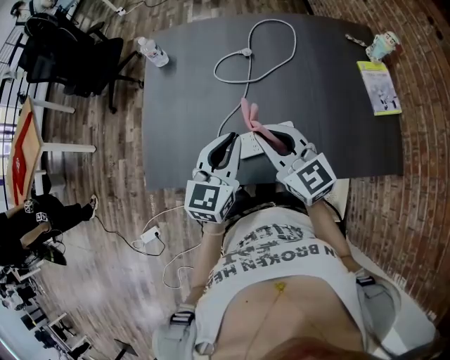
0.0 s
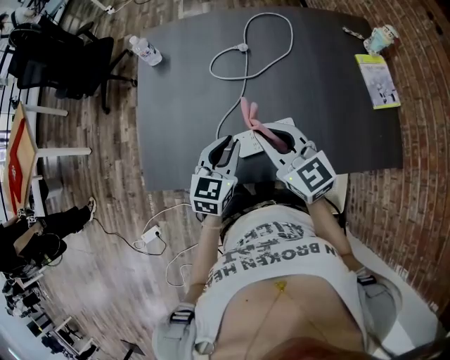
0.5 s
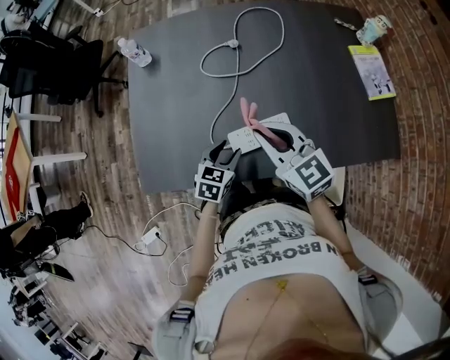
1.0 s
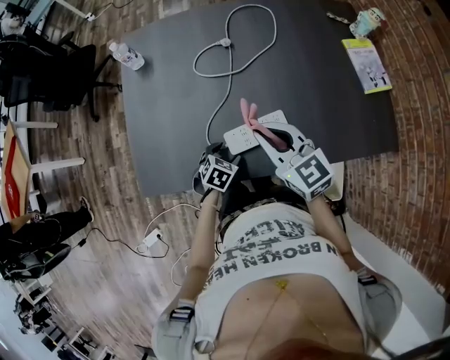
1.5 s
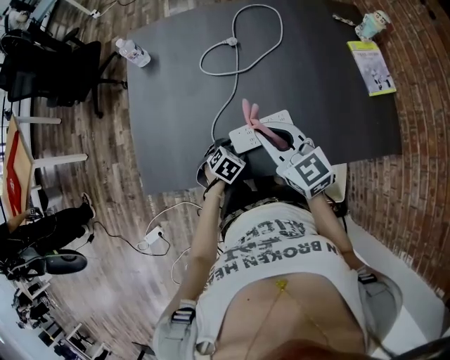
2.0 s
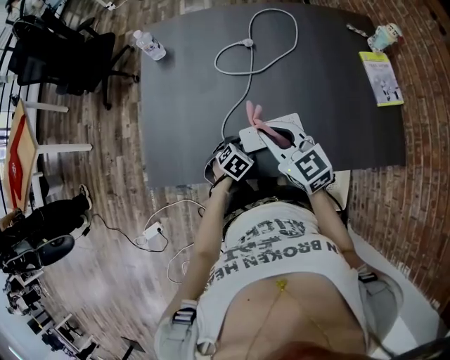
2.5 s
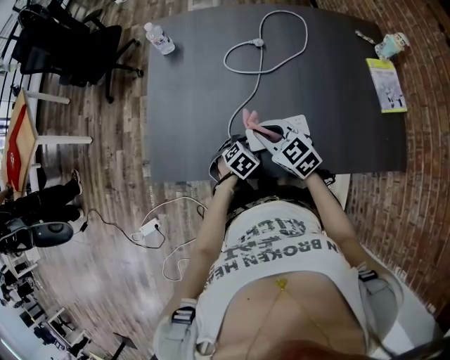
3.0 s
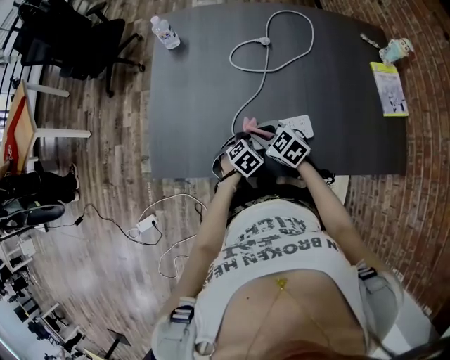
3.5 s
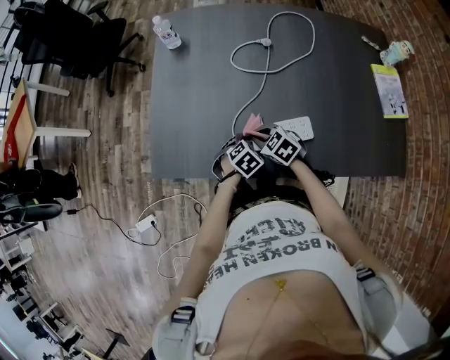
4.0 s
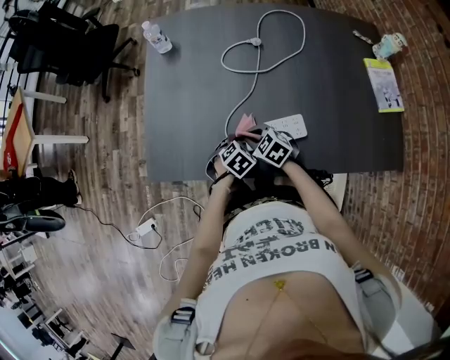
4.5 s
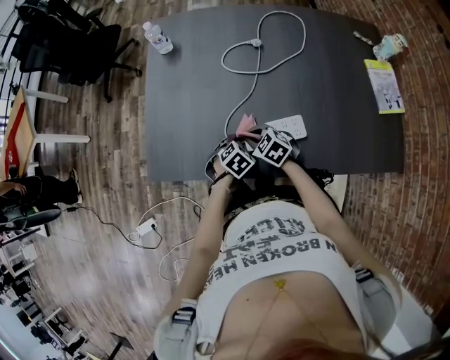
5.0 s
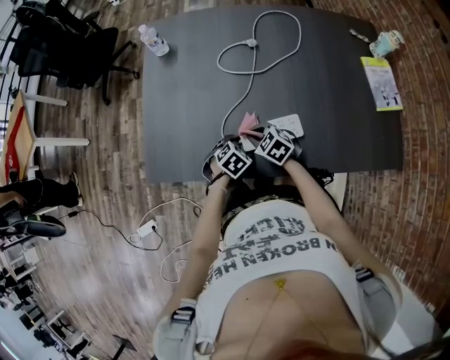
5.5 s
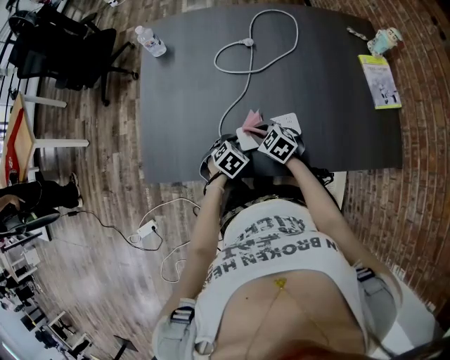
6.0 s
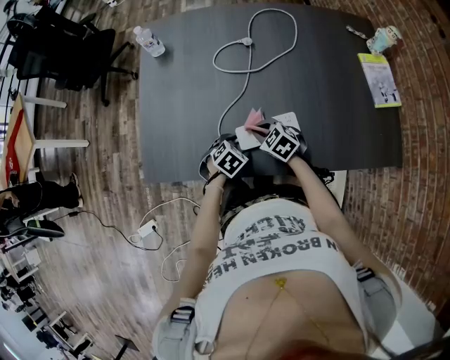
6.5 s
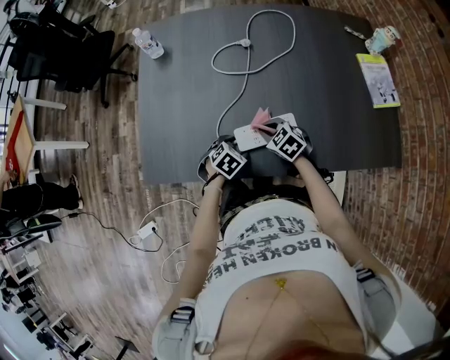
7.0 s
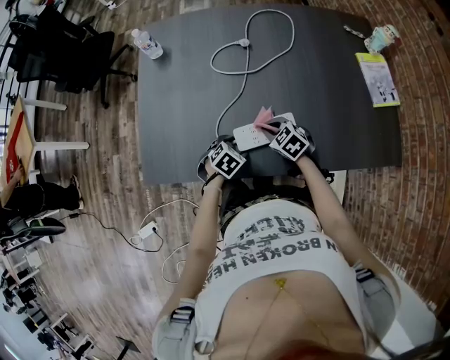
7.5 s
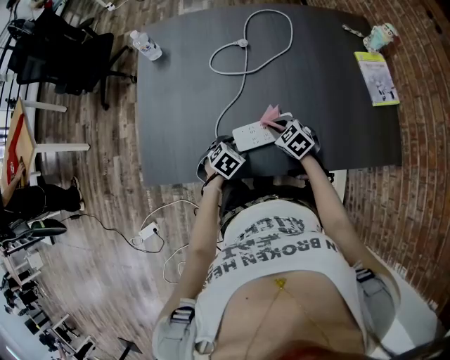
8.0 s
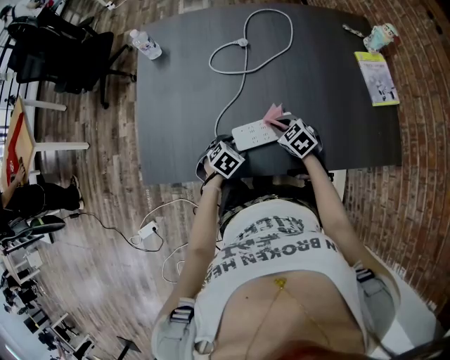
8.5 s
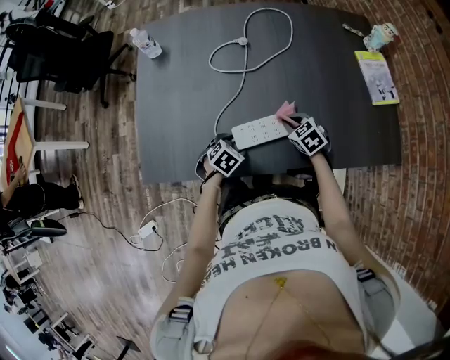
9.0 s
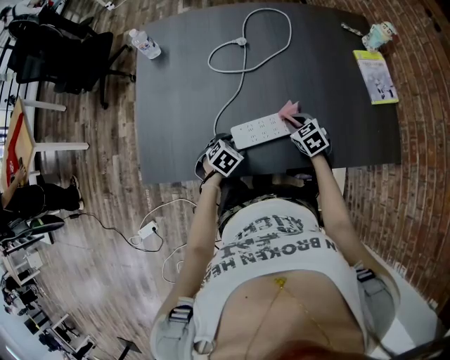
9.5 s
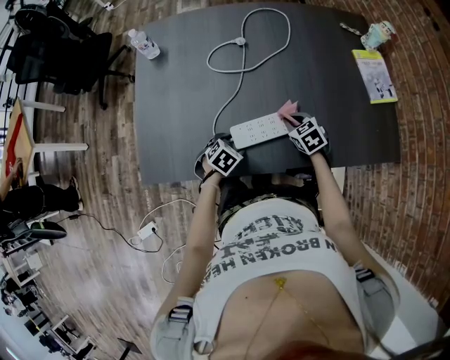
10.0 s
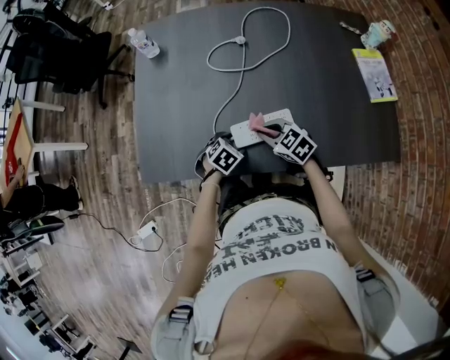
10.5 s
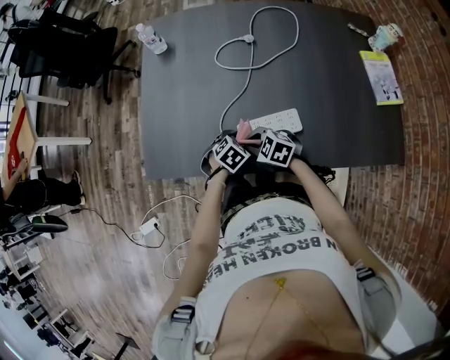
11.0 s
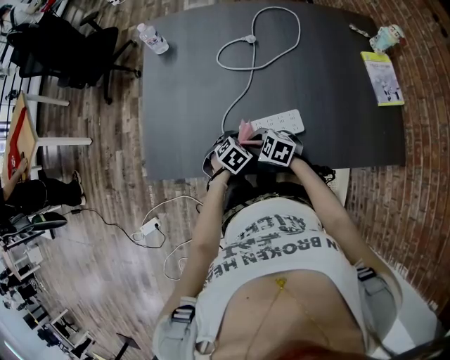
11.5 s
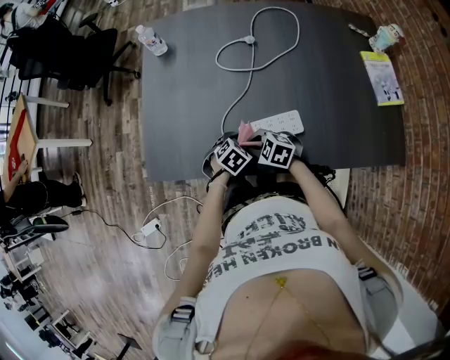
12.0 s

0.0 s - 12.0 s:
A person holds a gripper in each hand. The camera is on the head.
0.0 s - 2.0 s: The right gripper travels downward by roughly 5 cm. Meanwhile the left gripper heads downward, covering approximately 30 cm, tips its fingers downward by roughly 50 degrees, and opens.
2.0 s - 4.0 s: The right gripper shifts roughly 20 cm downward, and tips its fingers downward by roughly 30 degrees.
4.0 s - 6.0 s: The grippers move only a little.
6.0 s - 8.0 s: The right gripper shifts approximately 10 cm to the right.
8.0 s - 10.0 s: The right gripper is displaced to the right by approximately 5 cm.
10.0 s - 12.0 s: The right gripper ends up roughly 20 cm from where it was, and turns by about 40 degrees.

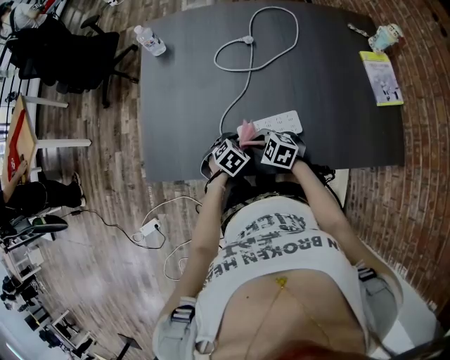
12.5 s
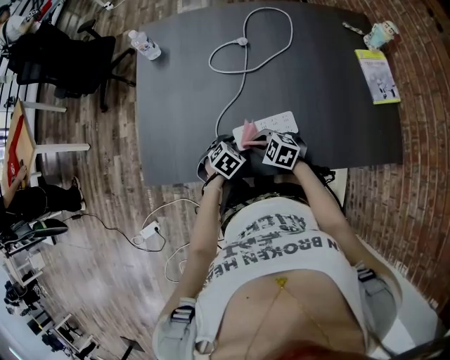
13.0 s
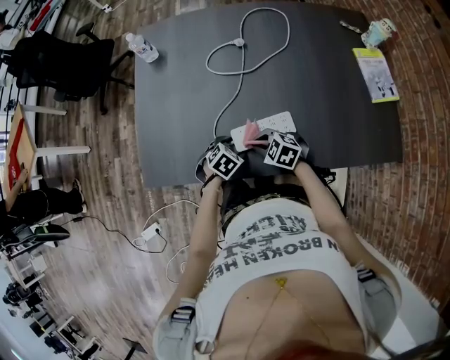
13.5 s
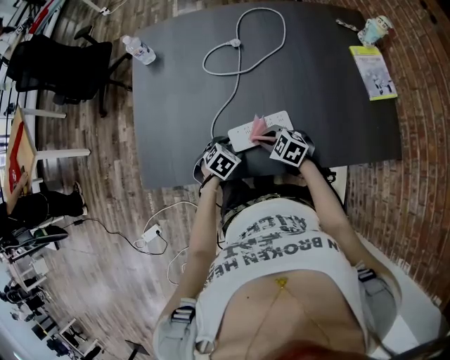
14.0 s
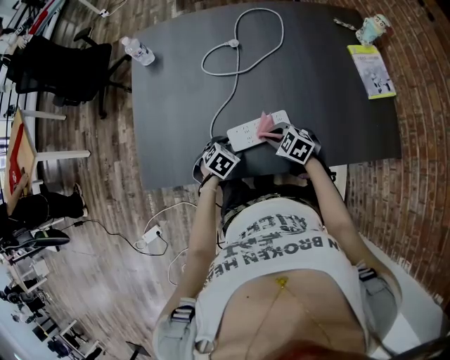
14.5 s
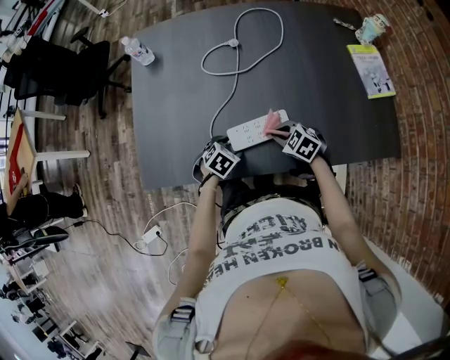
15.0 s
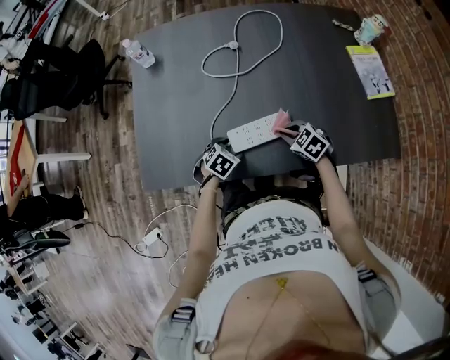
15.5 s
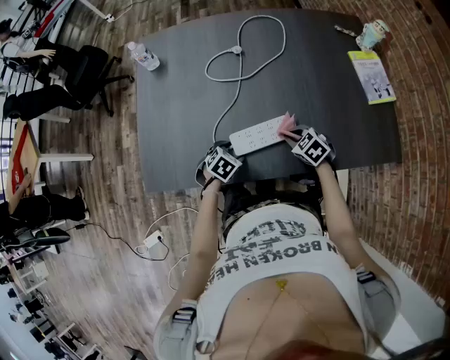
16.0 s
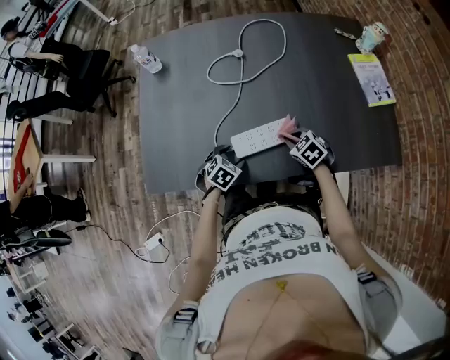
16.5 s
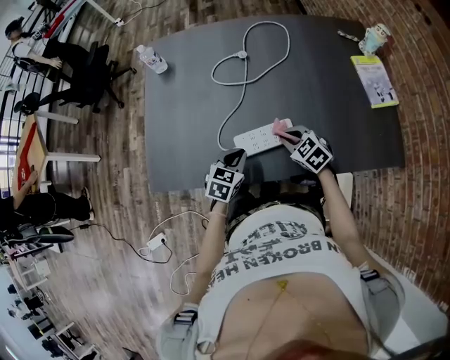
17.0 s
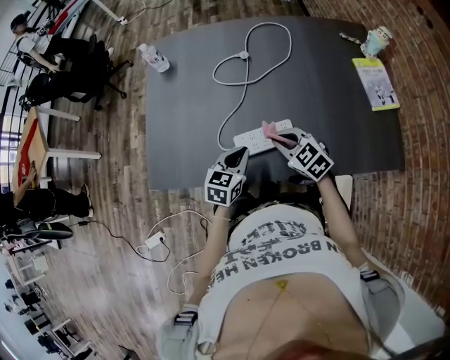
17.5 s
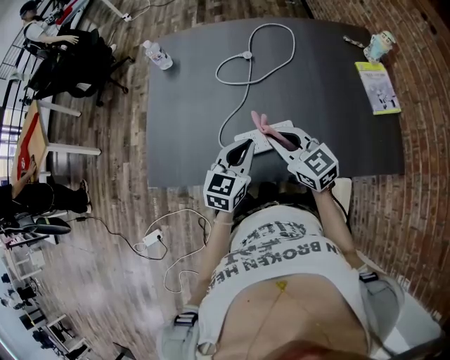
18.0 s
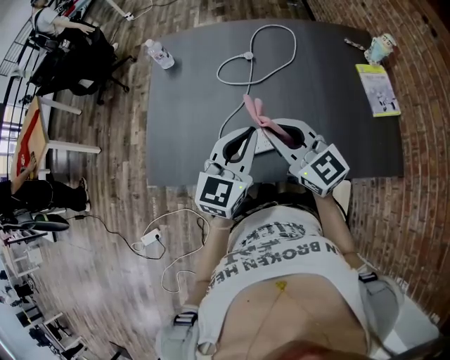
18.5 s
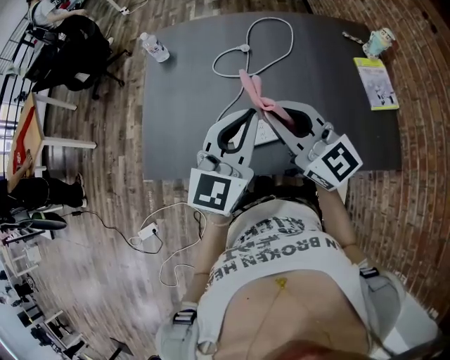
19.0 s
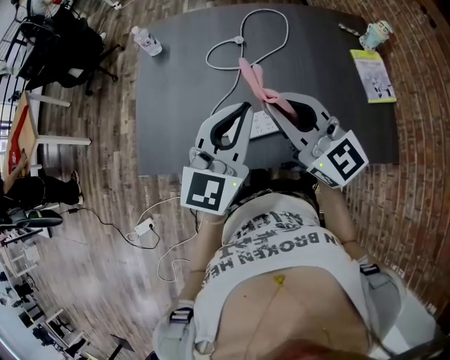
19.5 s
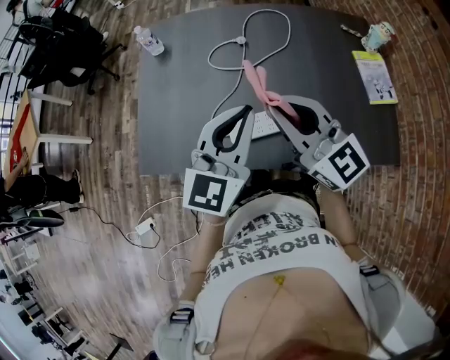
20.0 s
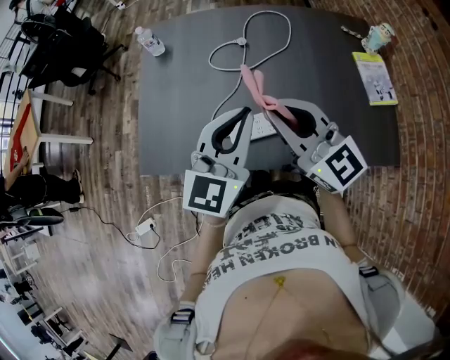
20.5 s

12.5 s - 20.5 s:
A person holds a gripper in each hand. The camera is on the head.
12.5 s - 14.5 s: The right gripper moves about 10 cm.
14.5 s - 16.5 s: The right gripper shifts by about 5 cm.
16.5 s - 18.5 s: Both grippers travel together upward, roughly 30 cm. The left gripper tips its fingers upward by some 50 degrees, and closes up. The right gripper points its fingers approximately 50 degrees further upward.
18.5 s - 20.5 s: Both grippers travel together upward, approximately 5 cm.

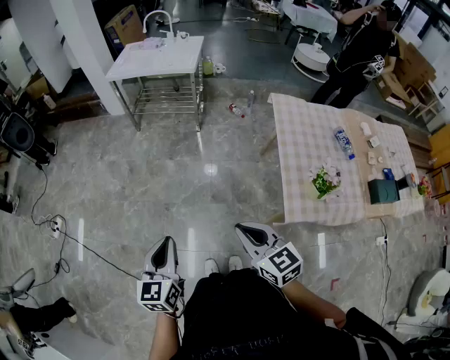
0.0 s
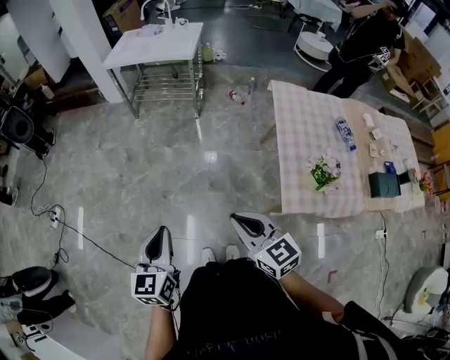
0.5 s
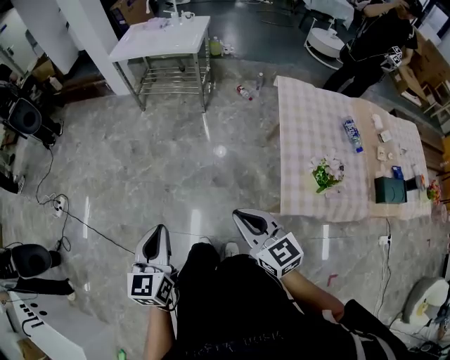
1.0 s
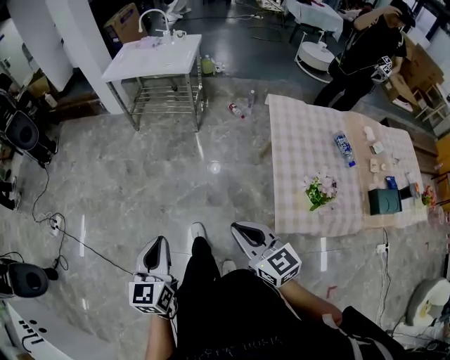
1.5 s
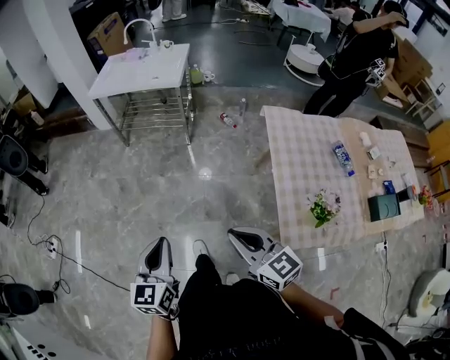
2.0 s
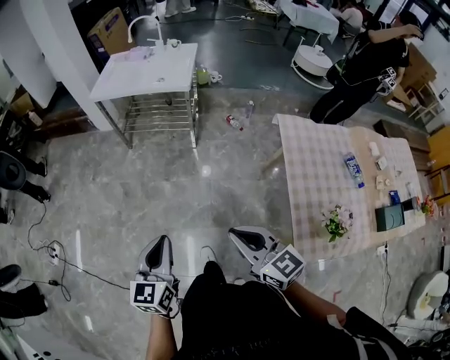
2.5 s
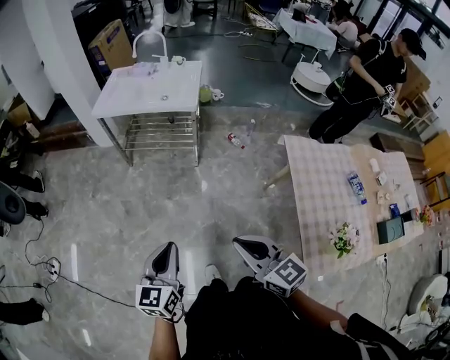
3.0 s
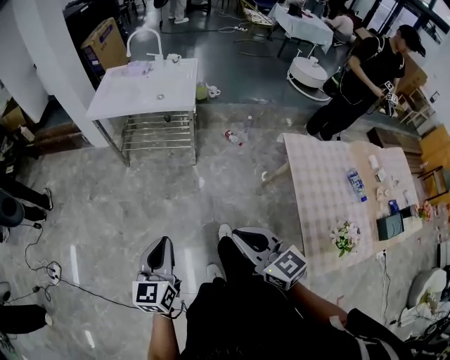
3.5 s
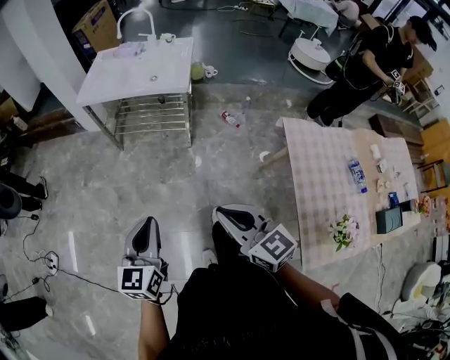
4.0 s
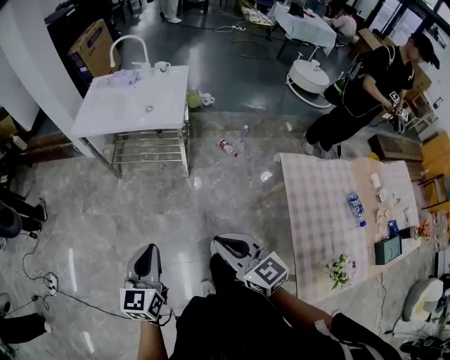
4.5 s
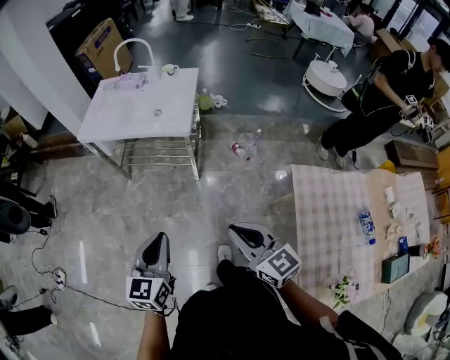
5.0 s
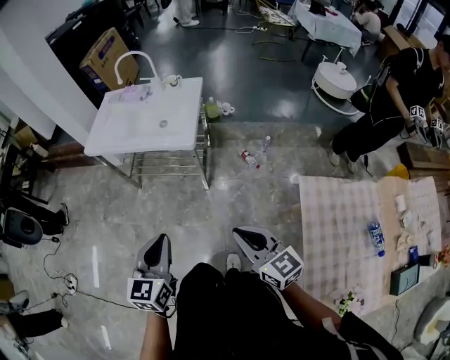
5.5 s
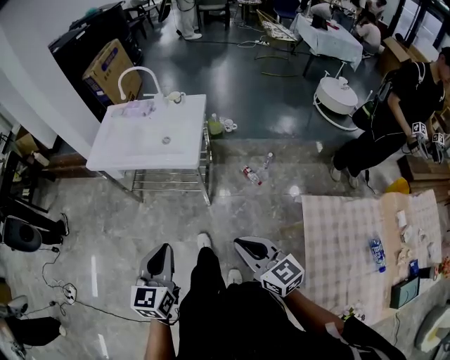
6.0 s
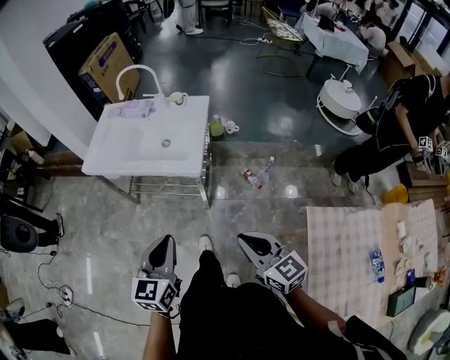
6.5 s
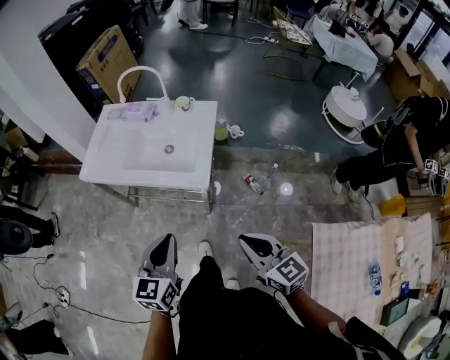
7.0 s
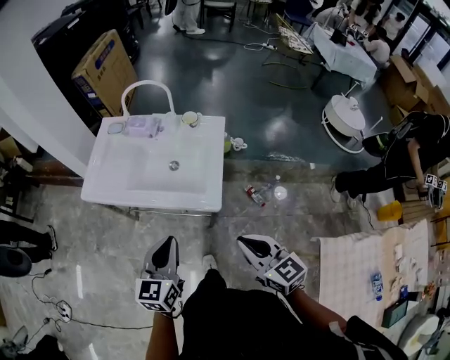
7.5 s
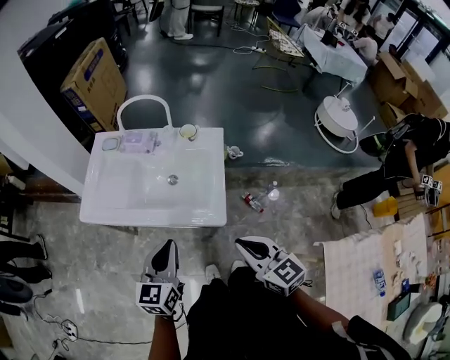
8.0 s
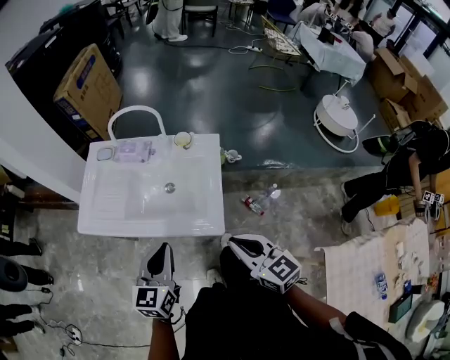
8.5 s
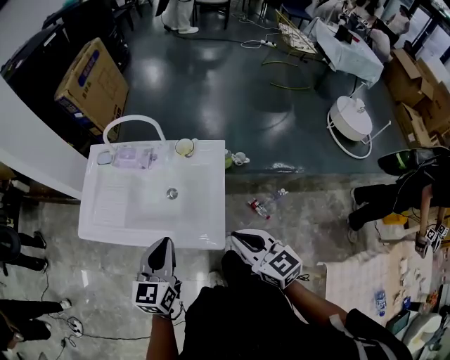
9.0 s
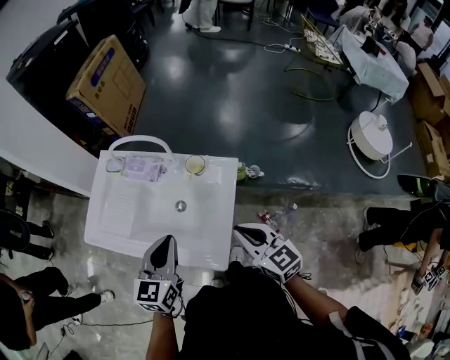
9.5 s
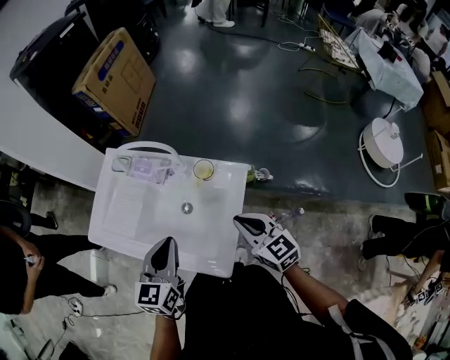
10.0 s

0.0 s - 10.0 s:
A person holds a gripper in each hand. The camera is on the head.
0.0 s - 2.0 s: Both grippers move forward and to the right, approximately 15 cm.
2.0 s - 4.0 s: The two grippers go about 25 cm forward.
4.0 s - 6.0 s: Both grippers move forward and to the right, roughly 25 cm.
6.0 s - 8.0 s: The grippers both shift forward by approximately 35 cm.
8.0 s - 10.0 s: The right gripper is displaced forward by approximately 30 cm; the left gripper travels forward and to the right by approximately 20 cm.
